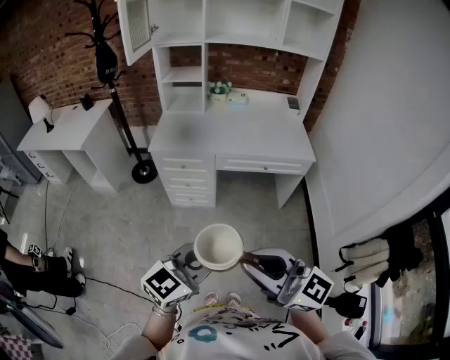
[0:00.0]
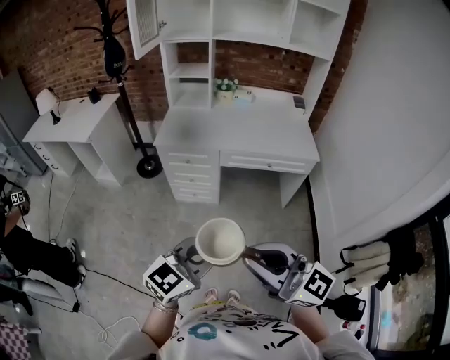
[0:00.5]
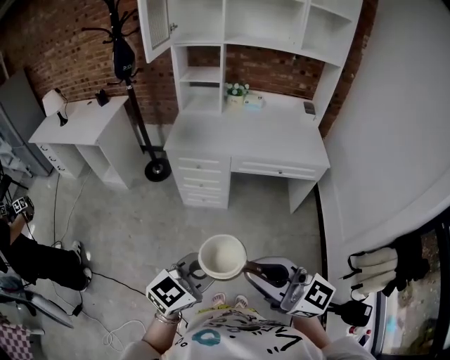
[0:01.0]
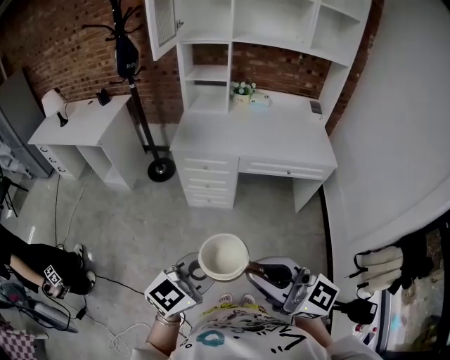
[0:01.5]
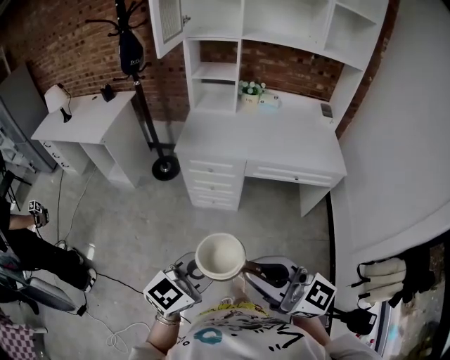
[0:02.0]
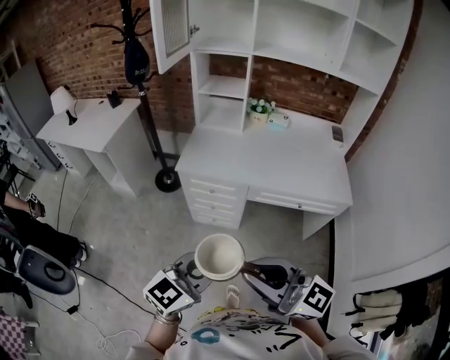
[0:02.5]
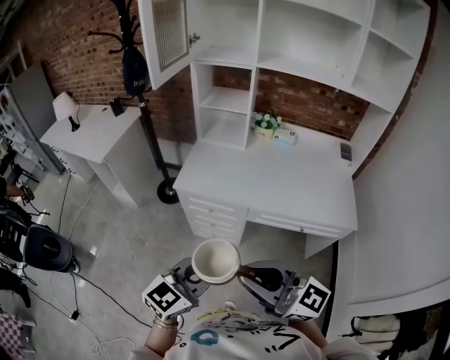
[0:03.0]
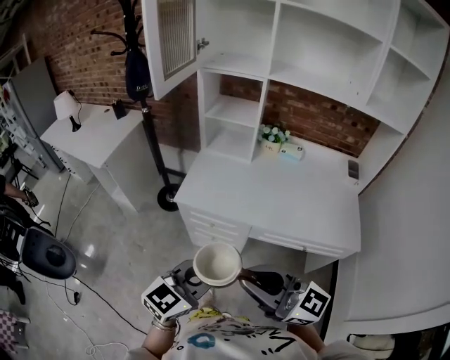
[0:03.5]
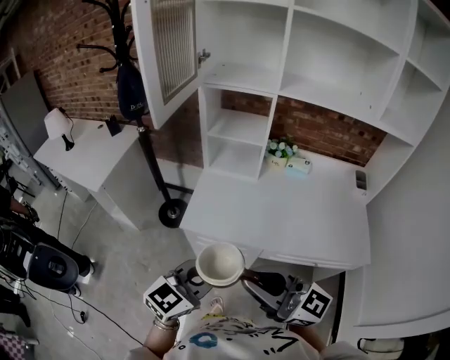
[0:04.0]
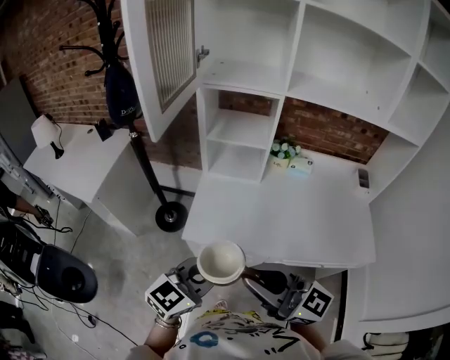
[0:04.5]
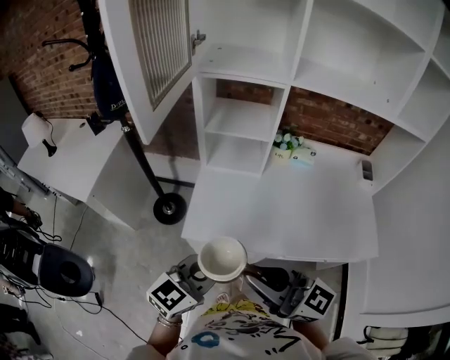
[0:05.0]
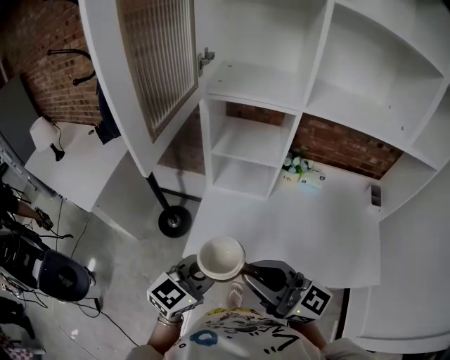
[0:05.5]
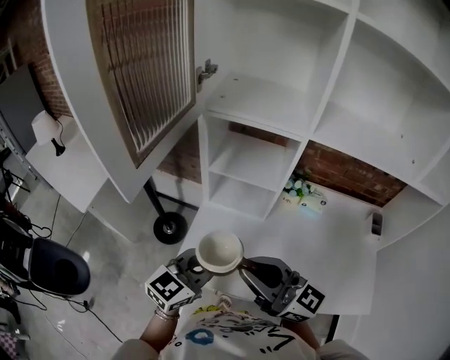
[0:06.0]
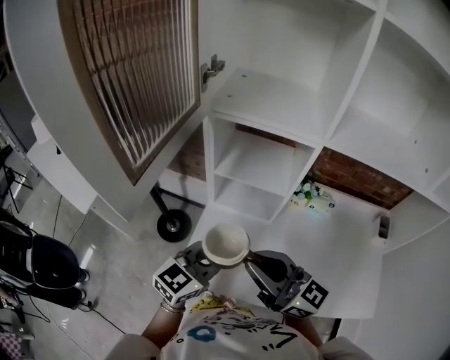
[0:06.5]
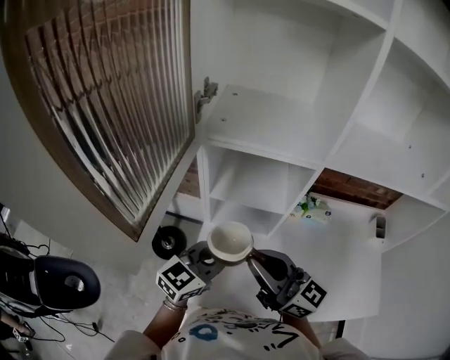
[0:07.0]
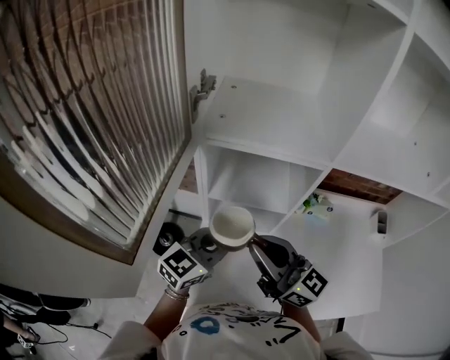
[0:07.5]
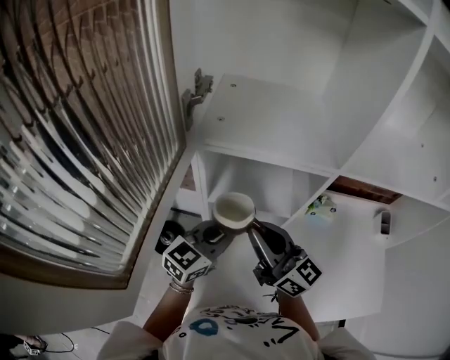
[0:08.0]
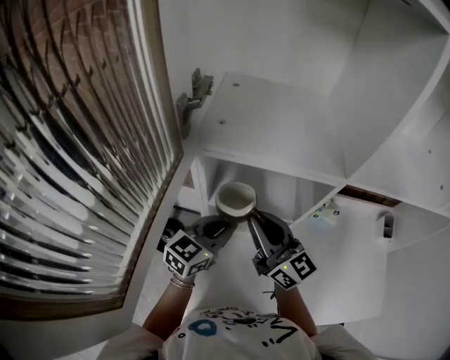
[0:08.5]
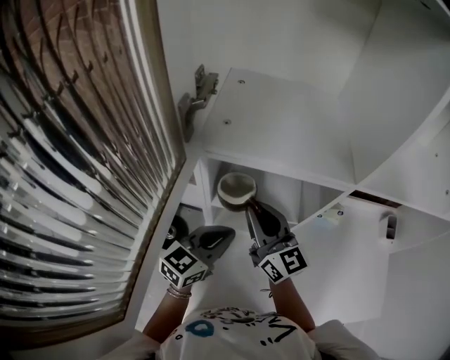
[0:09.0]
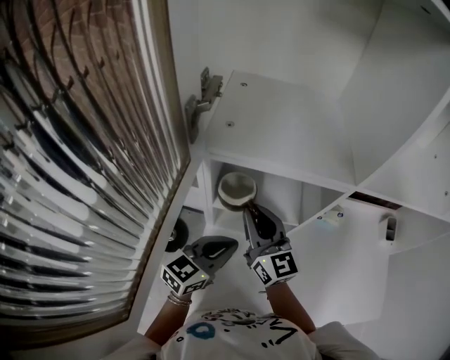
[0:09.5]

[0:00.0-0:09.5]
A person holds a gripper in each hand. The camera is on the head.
0.0 to 2.0 s: The grippers both shift to the left and forward by some 10 cm.
2.0 to 4.0 s: Both grippers travel together forward, approximately 40 cm.
4.0 to 5.5 s: The two grippers go some 20 cm forward.
5.5 to 7.5 s: The two grippers go roughly 25 cm forward.
7.5 to 9.5 s: The right gripper heads forward and downward, covering roughly 15 cm, and turns by some 30 degrees; the left gripper is displaced downward by approximately 5 cm.

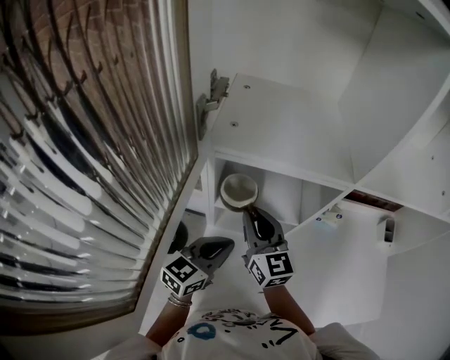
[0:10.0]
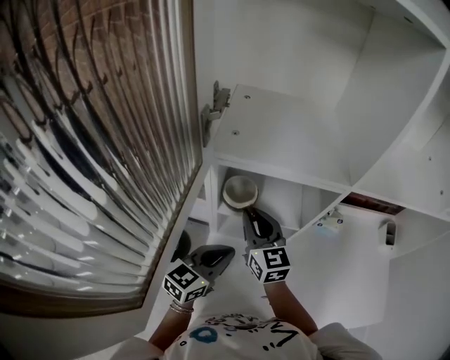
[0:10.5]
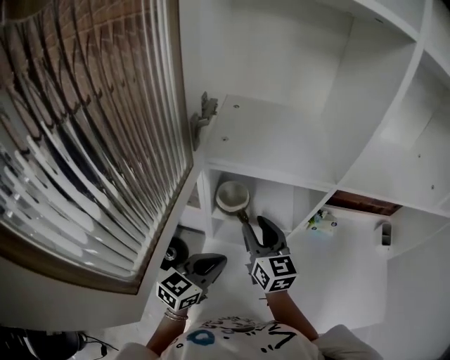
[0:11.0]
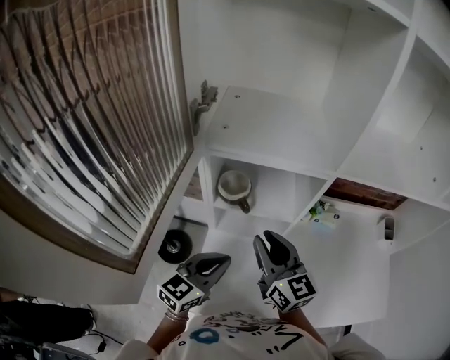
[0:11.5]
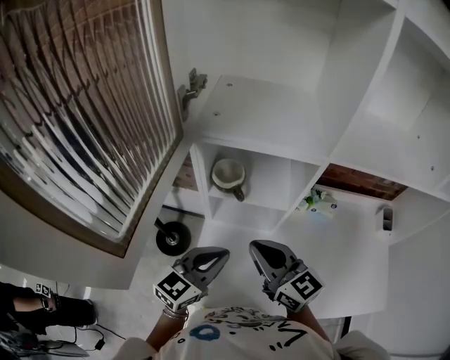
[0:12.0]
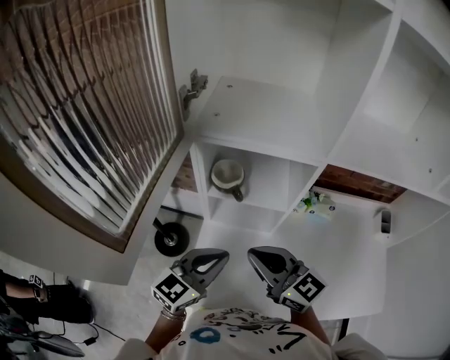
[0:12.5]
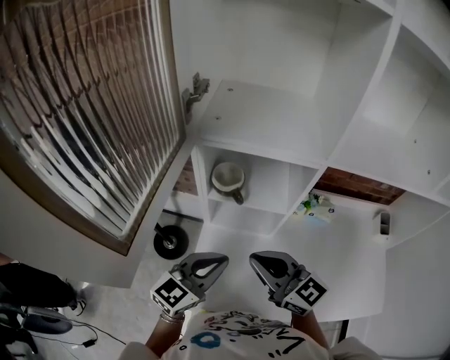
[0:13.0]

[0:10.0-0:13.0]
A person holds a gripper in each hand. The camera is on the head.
10.0 to 11.5 s: The right gripper shifts some 10 cm backward and to the right; the left gripper goes roughly 5 cm backward.
11.5 to 13.0 s: The right gripper travels backward by some 10 cm, swivels some 20 degrees, and closes its fingers.

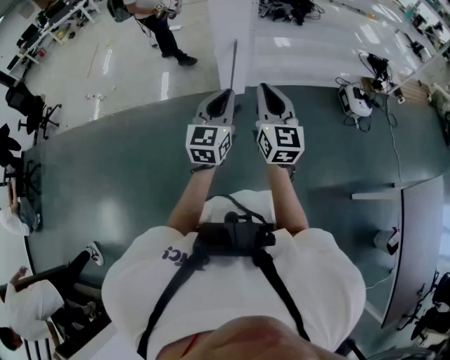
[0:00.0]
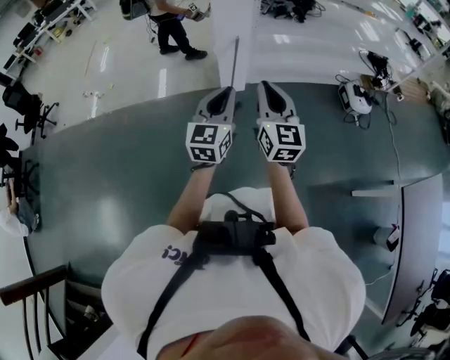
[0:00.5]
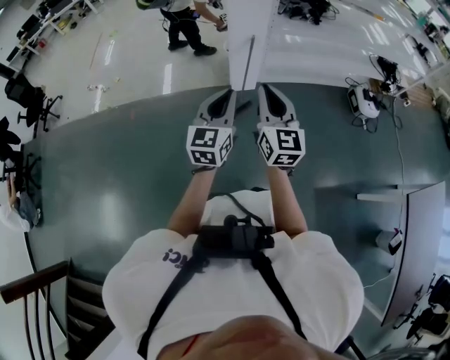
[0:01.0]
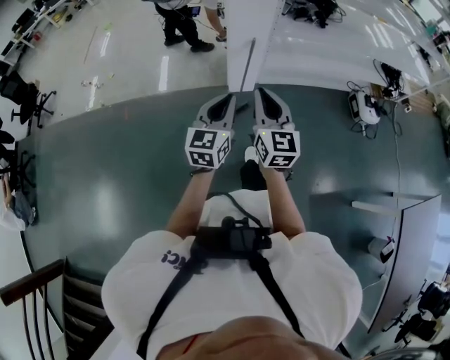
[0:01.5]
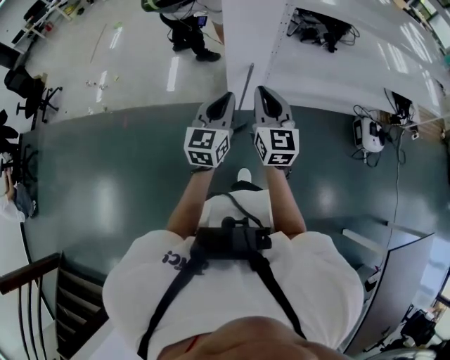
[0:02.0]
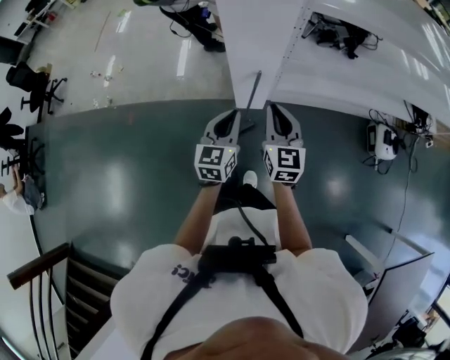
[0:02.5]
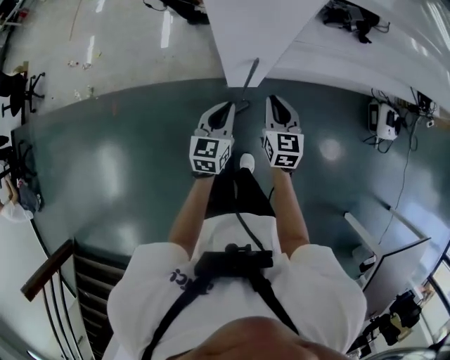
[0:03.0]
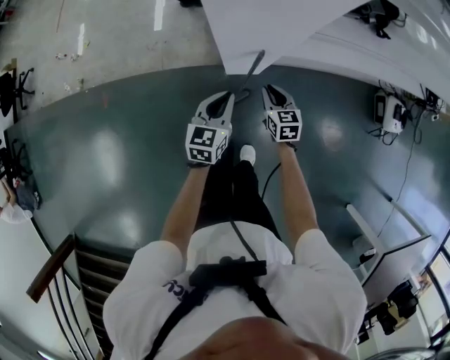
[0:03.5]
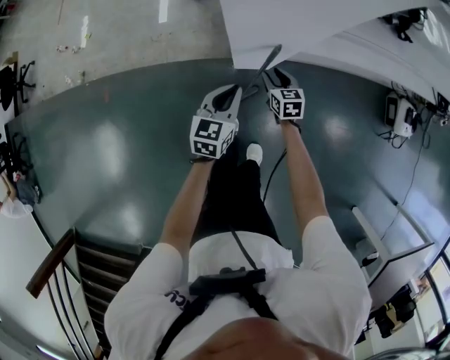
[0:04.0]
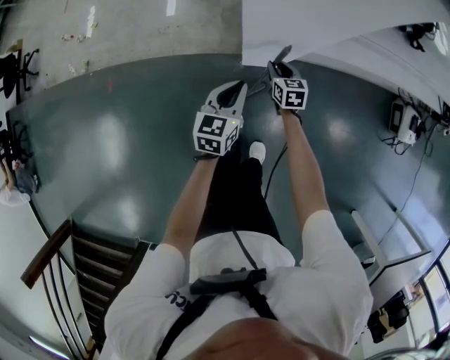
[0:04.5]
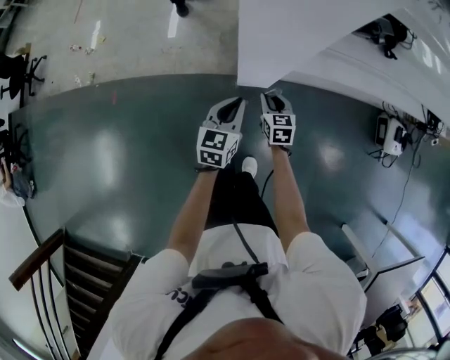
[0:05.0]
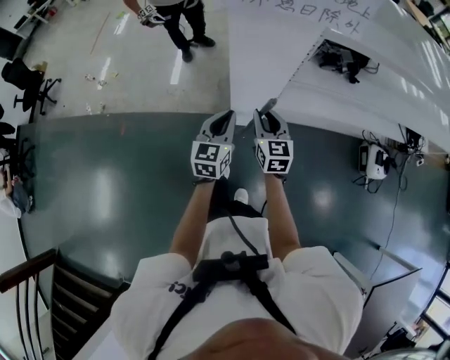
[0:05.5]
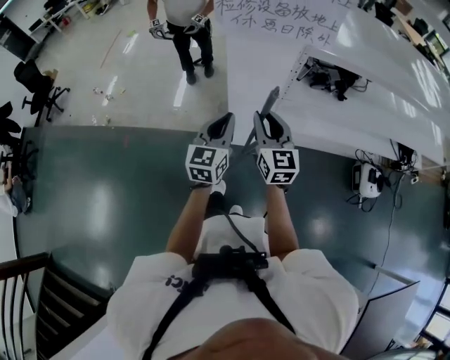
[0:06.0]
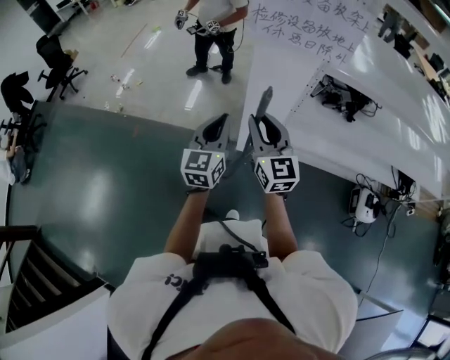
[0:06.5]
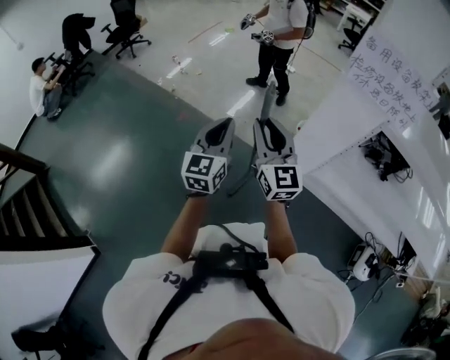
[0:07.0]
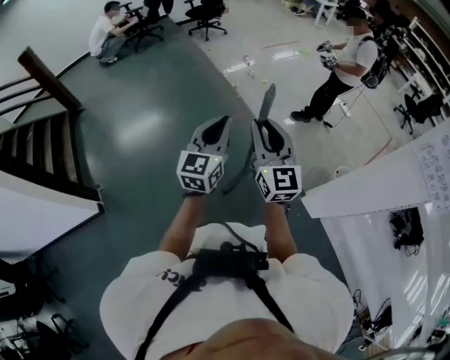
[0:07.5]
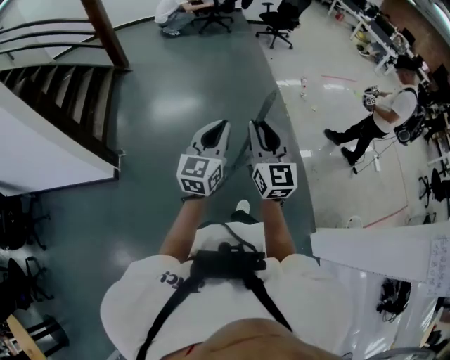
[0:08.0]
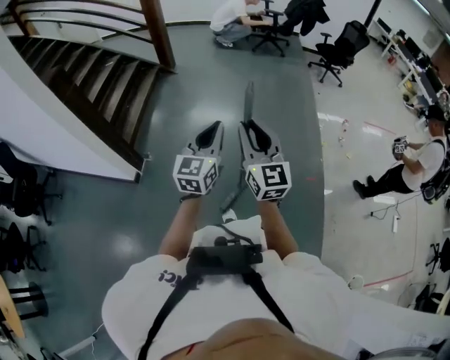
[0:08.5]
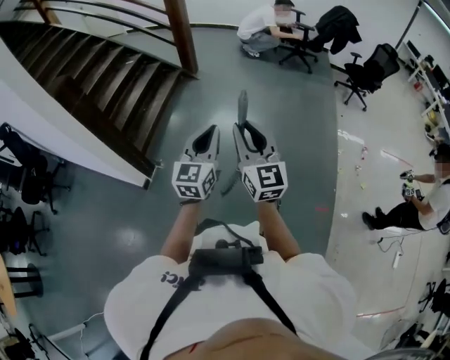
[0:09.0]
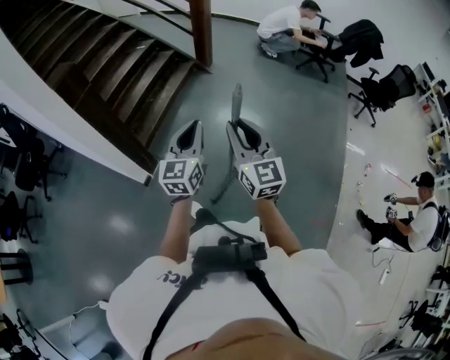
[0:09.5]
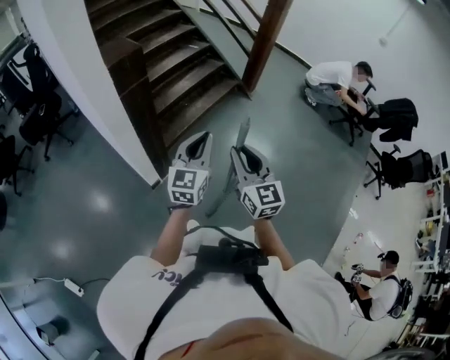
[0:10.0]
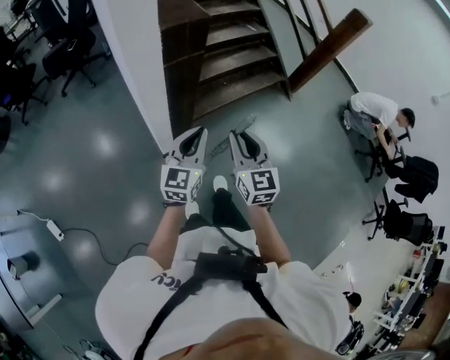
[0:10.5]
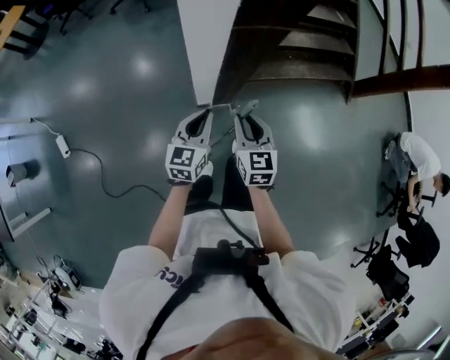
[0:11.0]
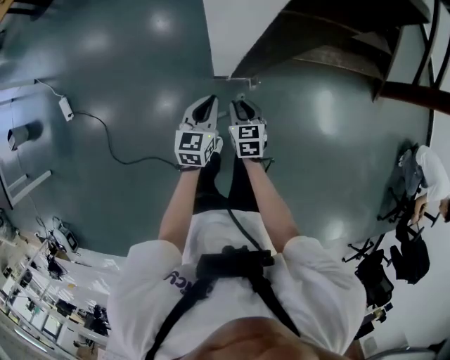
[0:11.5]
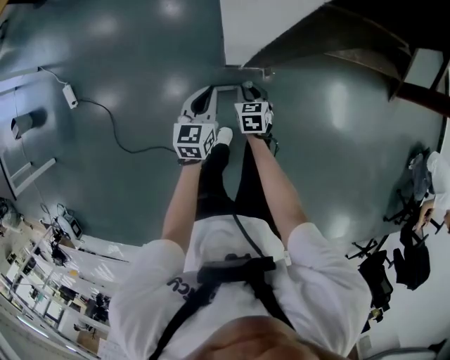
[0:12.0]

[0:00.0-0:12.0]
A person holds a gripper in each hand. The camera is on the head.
0.0 to 2.0 s: Both grippers travel together forward, roughly 30 cm.
2.0 to 4.0 s: The two grippers go roughly 50 cm downward and forward. The right gripper angles its fingers downward, by approximately 40 degrees, and opens its fingers, while the left gripper turns by roughly 20 degrees.
4.0 to 6.0 s: The two grippers go roughly 40 cm upward. The right gripper tilts its fingers some 40 degrees upward. Meanwhile the left gripper swivels about 30 degrees.
6.0 to 8.0 s: The two grippers travel together, about 90 cm. The right gripper rotates some 80 degrees. Meanwhile the left gripper swivels roughly 70 degrees.
8.0 to 10.0 s: Both grippers are carried about 80 cm. The right gripper changes its angle by roughly 60 degrees, while the left gripper rotates approximately 50 degrees.
10.0 to 12.0 s: Both grippers travel together downward, roughly 50 cm. The left gripper tilts its fingers some 30 degrees downward. Meanwhile the right gripper tips its fingers downward by some 50 degrees.

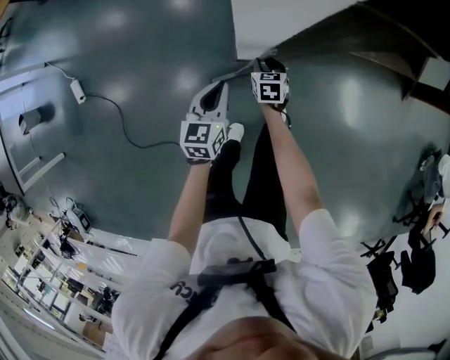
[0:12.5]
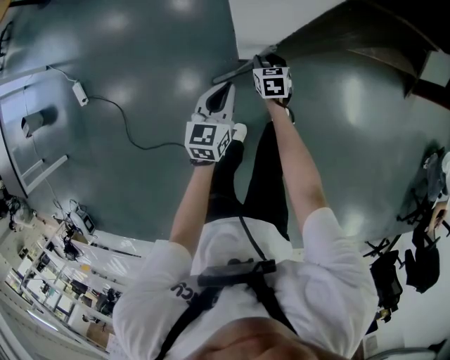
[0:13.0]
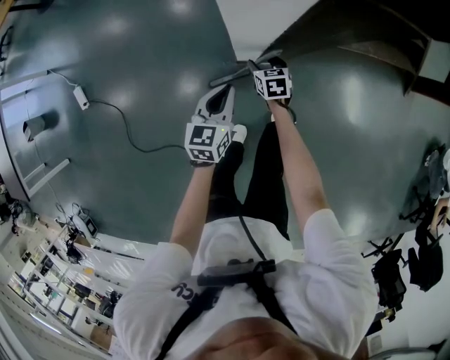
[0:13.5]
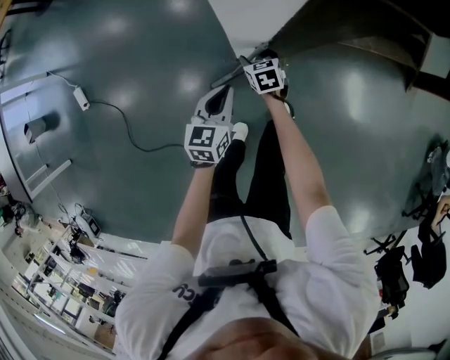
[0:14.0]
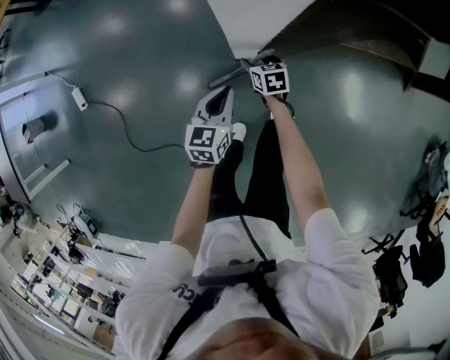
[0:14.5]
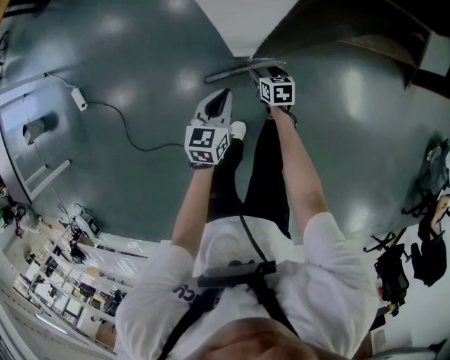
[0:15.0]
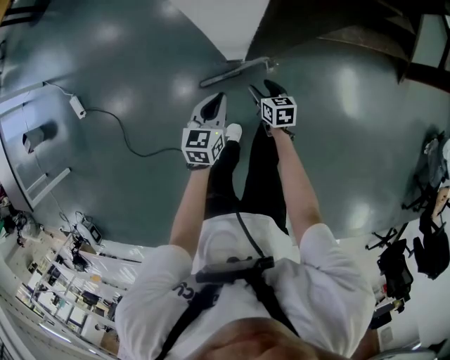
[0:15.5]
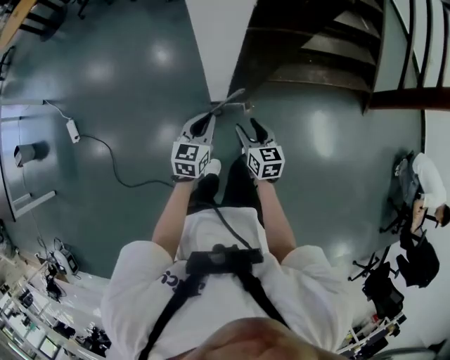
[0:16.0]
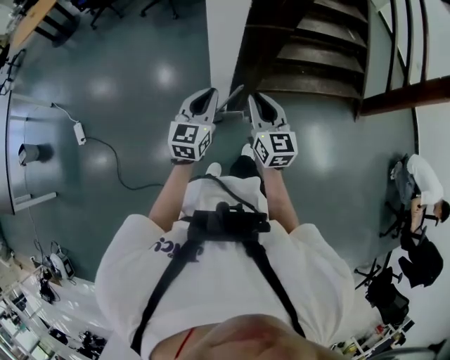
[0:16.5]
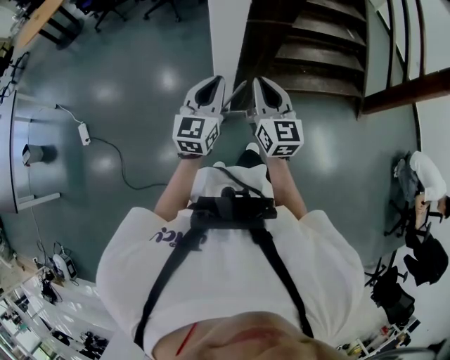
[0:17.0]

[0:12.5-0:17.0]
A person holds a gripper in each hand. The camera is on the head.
12.5 to 14.5 s: The right gripper opens.
14.5 to 17.0 s: The grippers both shift upward by about 50 cm. The right gripper angles its fingers upward, by approximately 50 degrees, and closes, while the left gripper swivels about 30 degrees.
